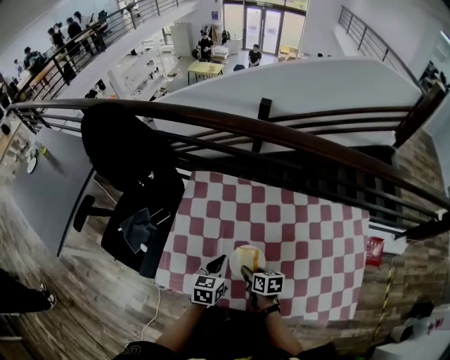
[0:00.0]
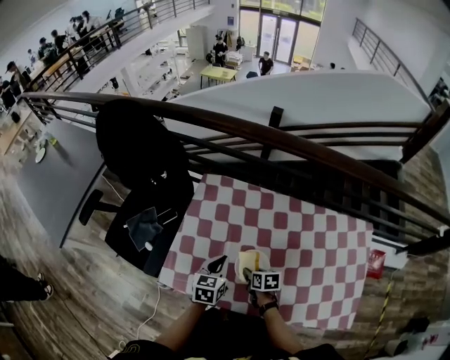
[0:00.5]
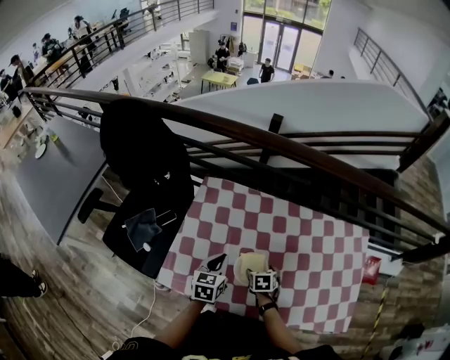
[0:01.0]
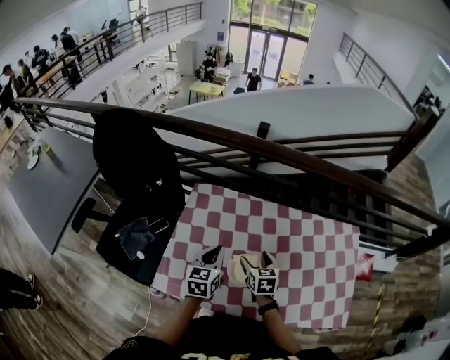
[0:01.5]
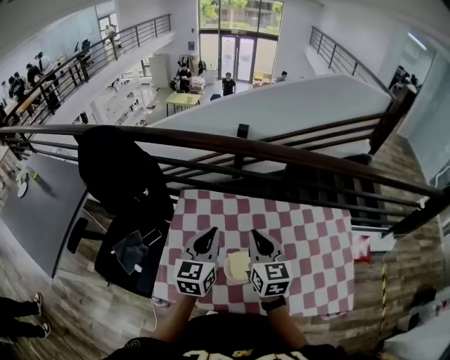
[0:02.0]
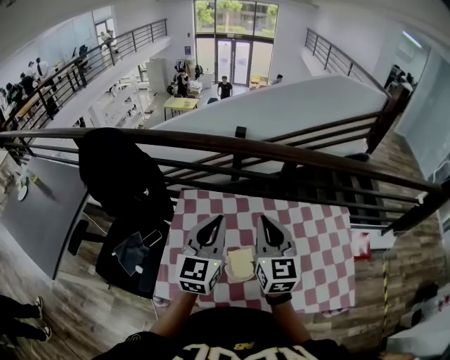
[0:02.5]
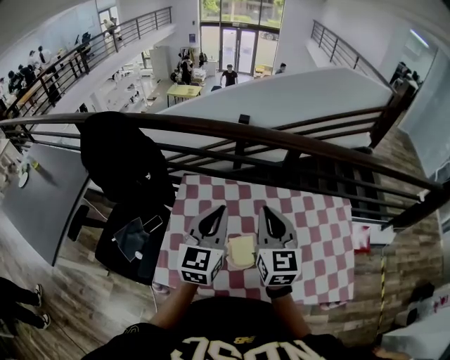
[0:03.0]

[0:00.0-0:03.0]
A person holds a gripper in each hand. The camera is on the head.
0:00.0 to 0:01.5: The left gripper moves upward, approximately 5 cm; the right gripper heads upward and forward, covering approximately 10 cm, swivels roughly 30 degrees, and opens its fingers.
0:01.5 to 0:03.0: The two grippers go some 25 cm upward. The left gripper turns by about 30 degrees; the right gripper tilts its fingers some 40 degrees upward, and closes its fingers.

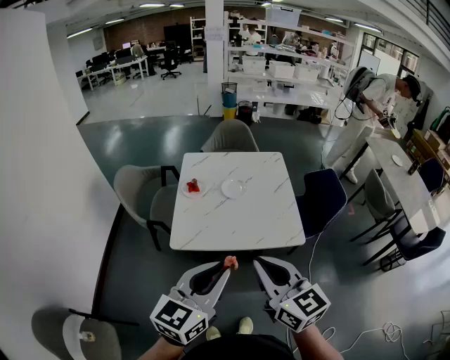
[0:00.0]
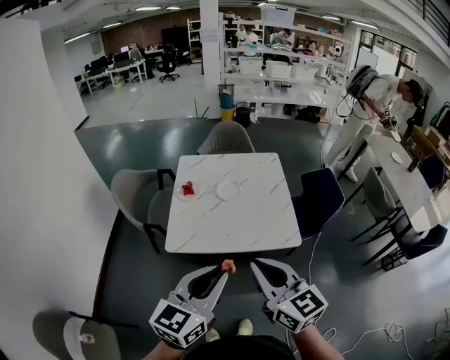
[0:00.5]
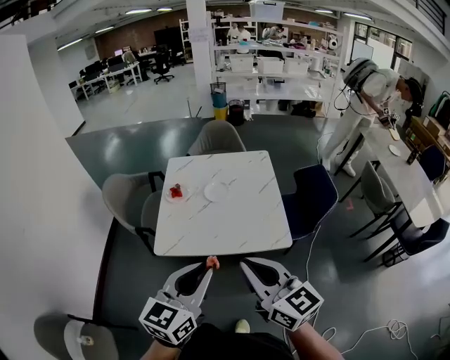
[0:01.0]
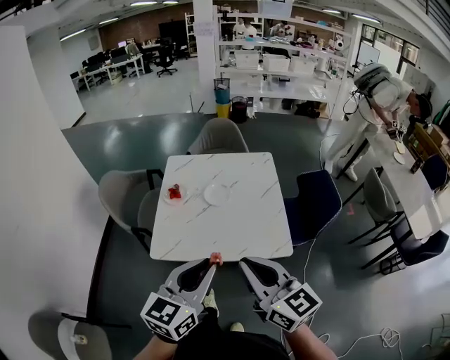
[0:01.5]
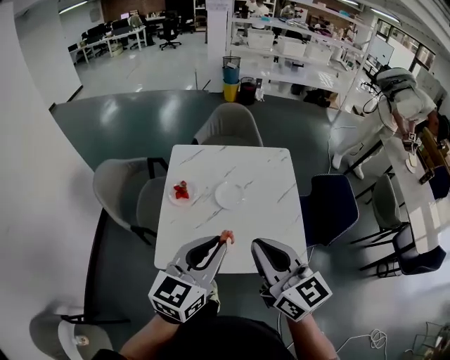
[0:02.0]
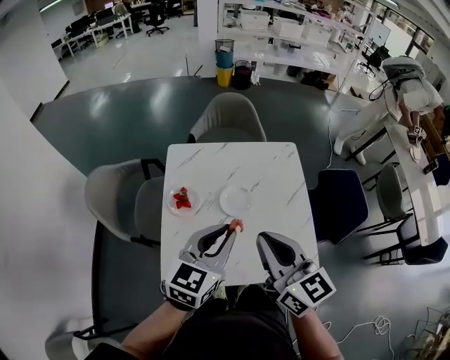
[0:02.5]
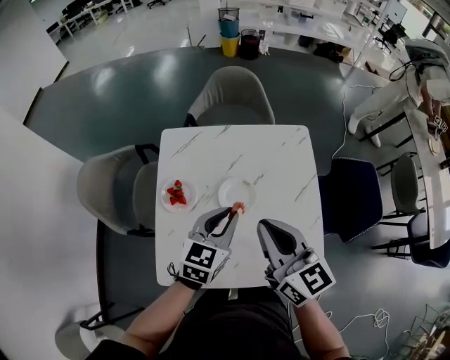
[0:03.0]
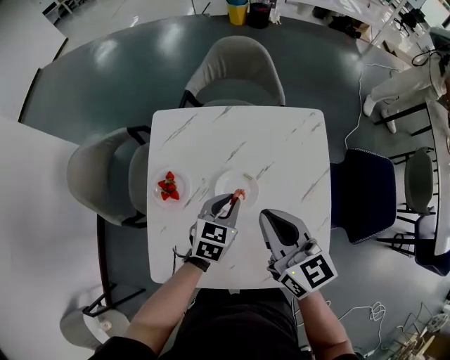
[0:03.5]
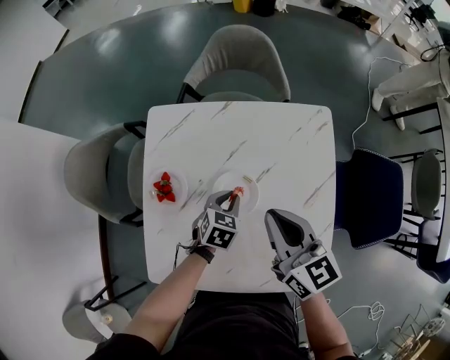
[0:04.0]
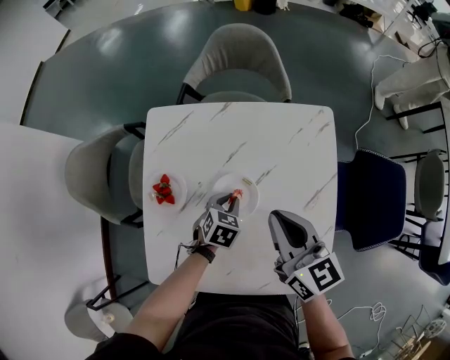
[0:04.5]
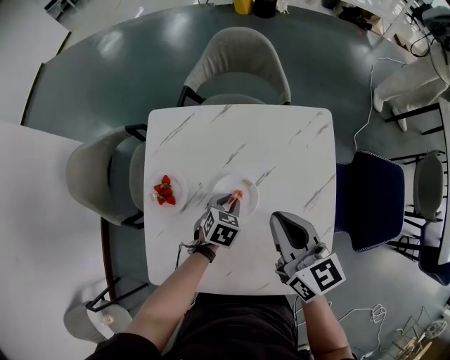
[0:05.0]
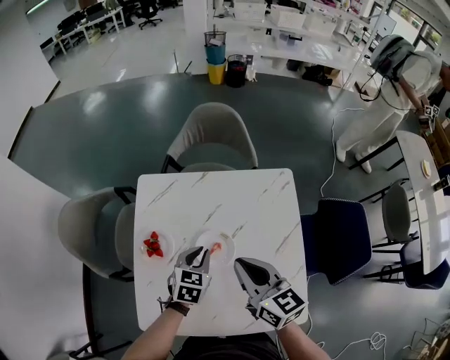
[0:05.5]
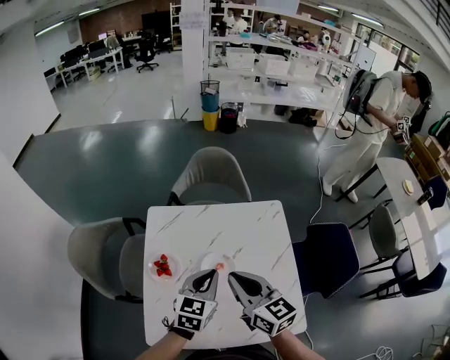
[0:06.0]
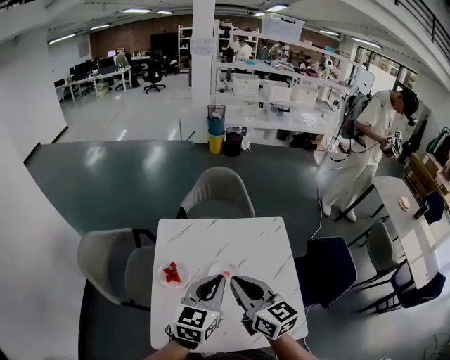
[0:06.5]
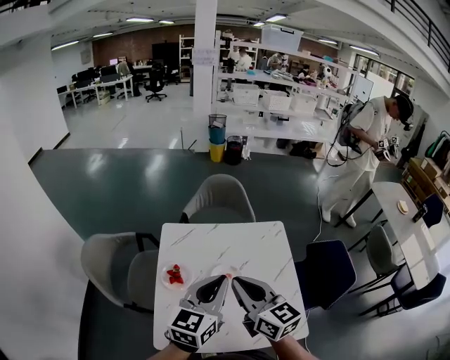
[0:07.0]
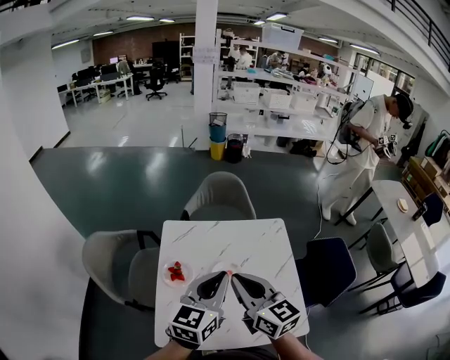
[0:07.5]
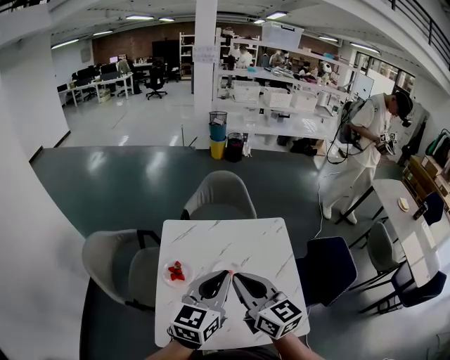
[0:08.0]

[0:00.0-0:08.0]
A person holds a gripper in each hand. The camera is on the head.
0:00.0 to 0:02.0: Both grippers move forward, approximately 25 cm.
0:02.0 to 0:04.0: The left gripper travels downward and forward by approximately 50 cm, and points its fingers roughly 50 degrees further downward. The right gripper moves forward and downward, some 35 cm.
0:04.0 to 0:06.0: The right gripper travels upward, to the left and backward by about 15 cm. The left gripper moves upward, approximately 25 cm, and rotates some 30 degrees.
0:06.0 to 0:08.0: The right gripper heads upward and backward, covering about 10 cm. Meanwhile the left gripper is displaced upward and backward by about 15 cm, and swivels about 20 degrees.

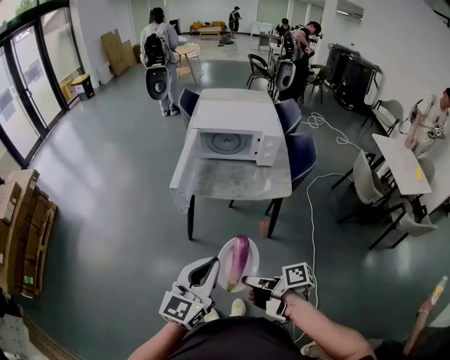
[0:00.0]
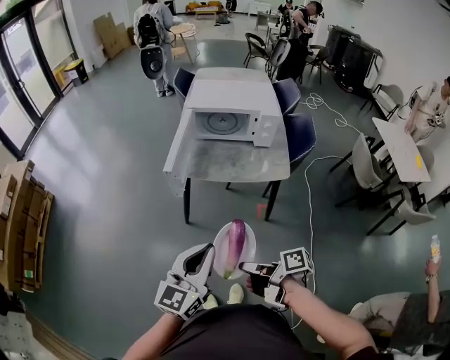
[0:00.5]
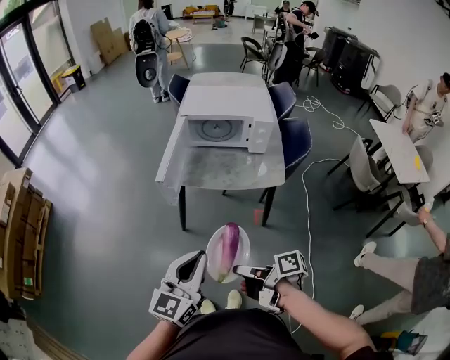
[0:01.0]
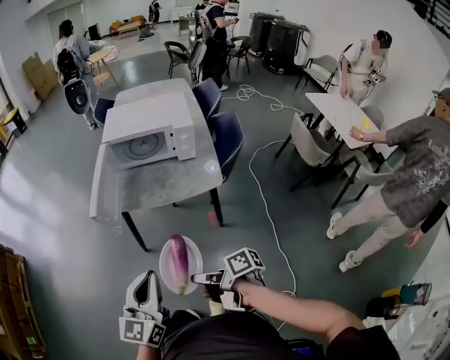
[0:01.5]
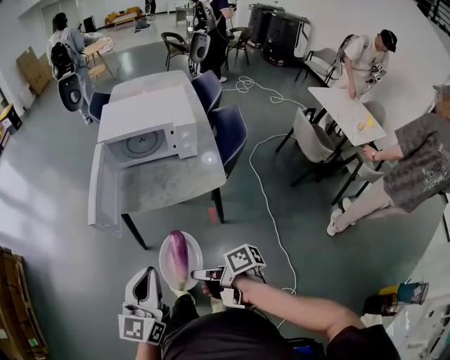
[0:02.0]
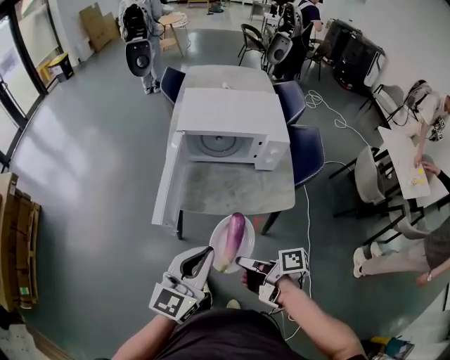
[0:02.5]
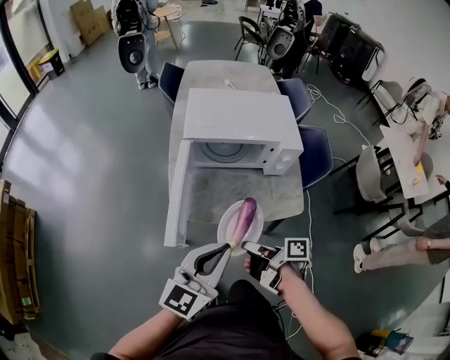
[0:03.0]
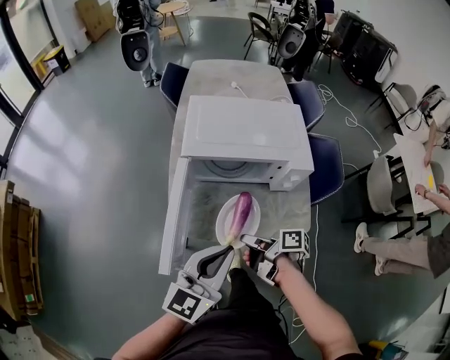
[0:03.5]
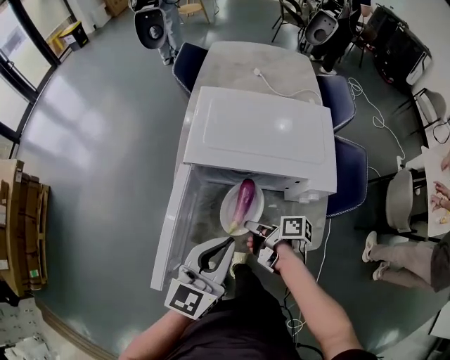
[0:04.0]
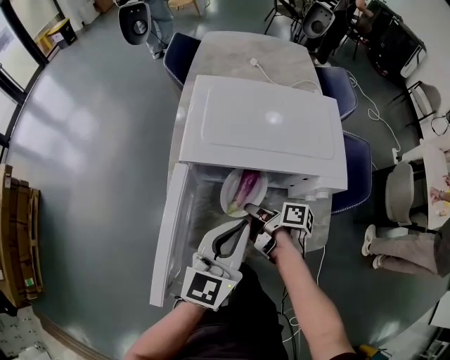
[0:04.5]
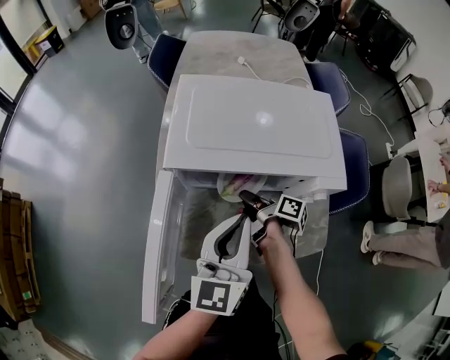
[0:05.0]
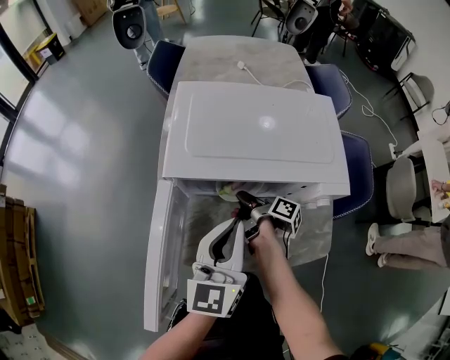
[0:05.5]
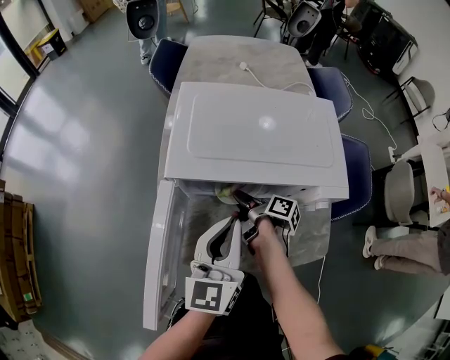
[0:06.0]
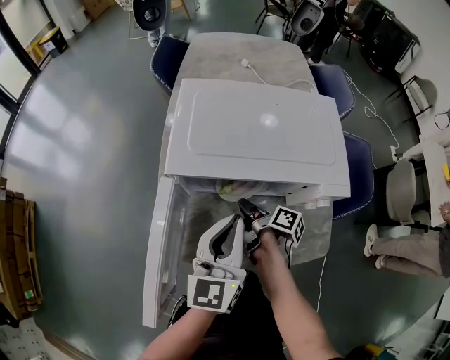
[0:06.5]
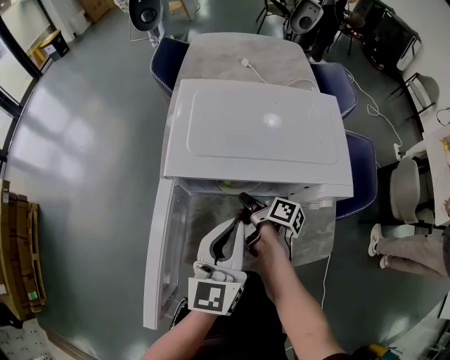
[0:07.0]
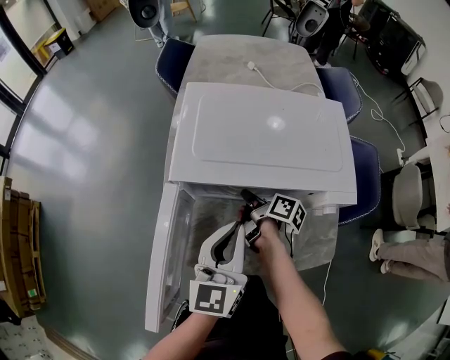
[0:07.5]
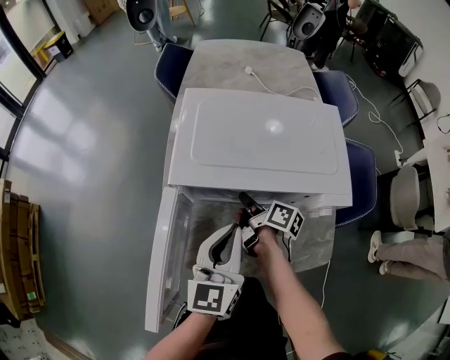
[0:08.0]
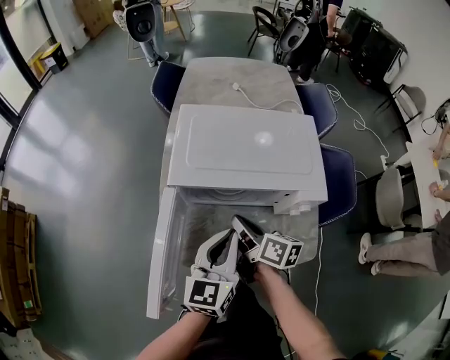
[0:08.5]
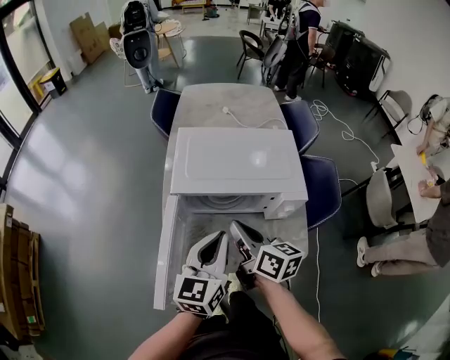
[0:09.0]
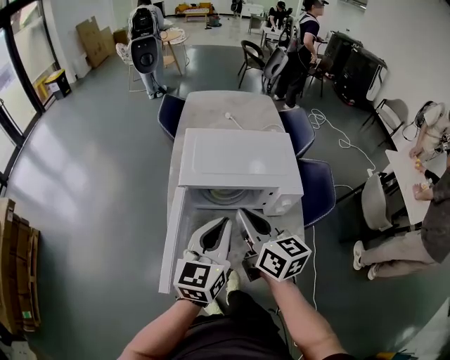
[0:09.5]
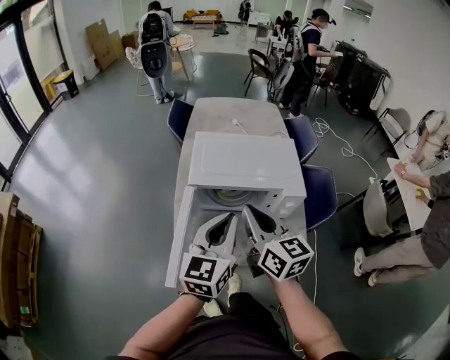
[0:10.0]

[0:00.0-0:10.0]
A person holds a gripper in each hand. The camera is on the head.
0:00.0 to 0:02.0: The left gripper ends up roughly 15 cm from where it was.
0:02.0 to 0:04.0: The left gripper moves some 35 cm.
0:04.0 to 0:06.0: The left gripper ends up about 10 cm from where it was.
0:08.0 to 0:10.0: The left gripper is displaced upward by some 15 cm.

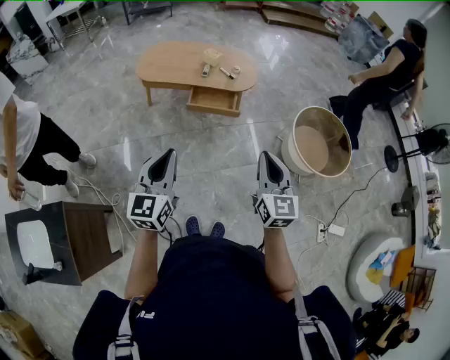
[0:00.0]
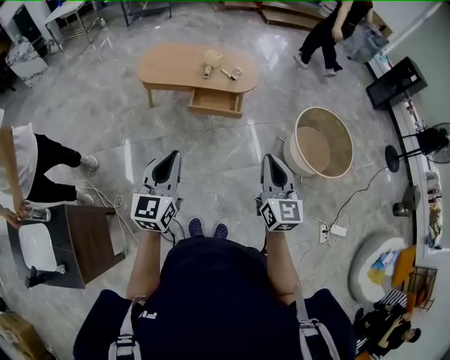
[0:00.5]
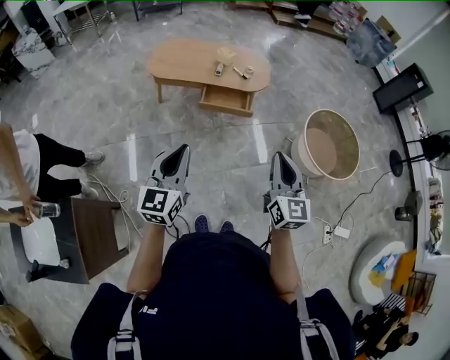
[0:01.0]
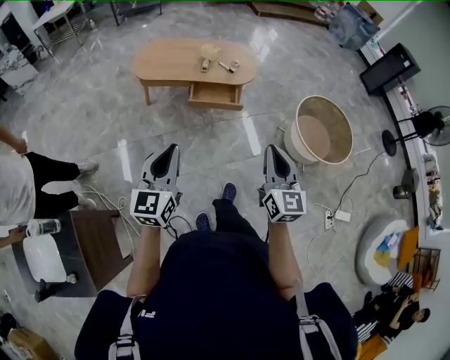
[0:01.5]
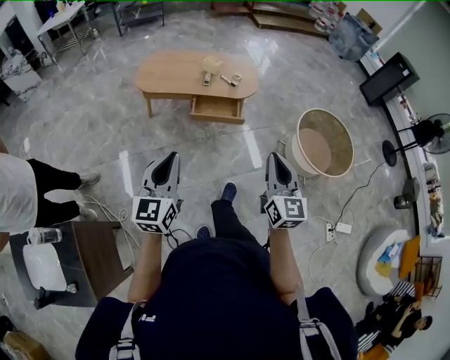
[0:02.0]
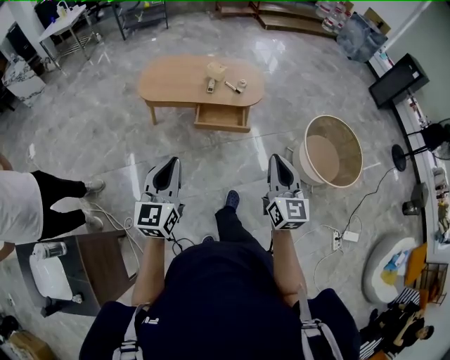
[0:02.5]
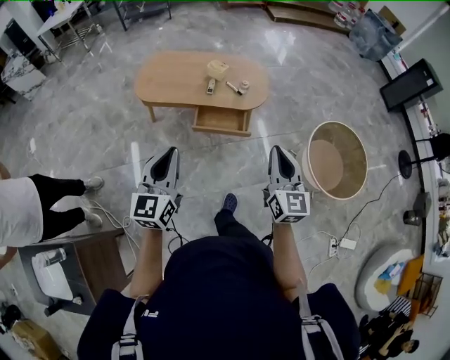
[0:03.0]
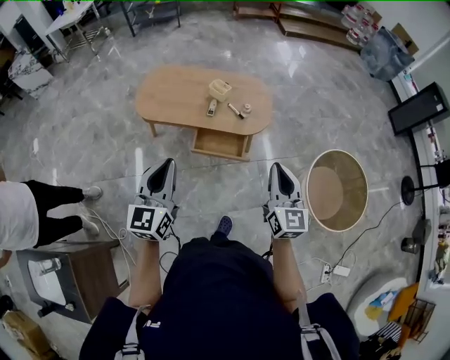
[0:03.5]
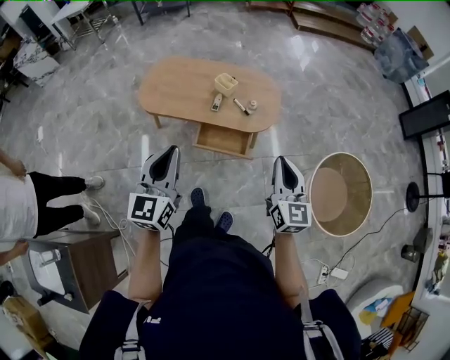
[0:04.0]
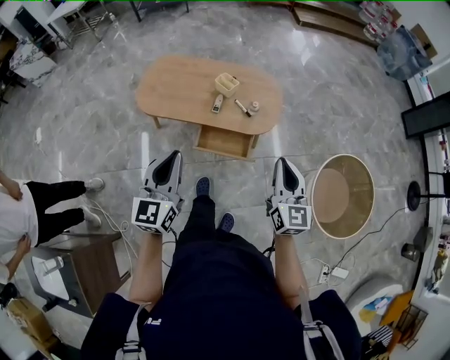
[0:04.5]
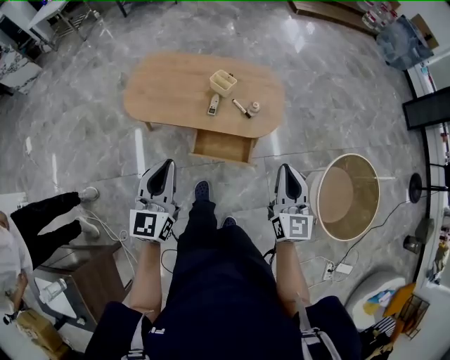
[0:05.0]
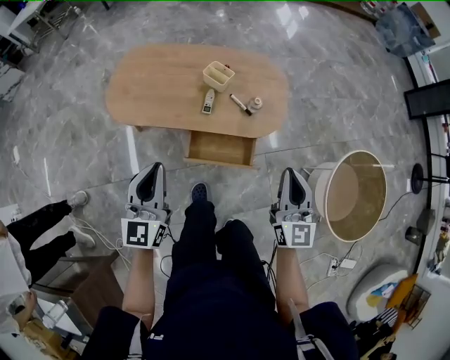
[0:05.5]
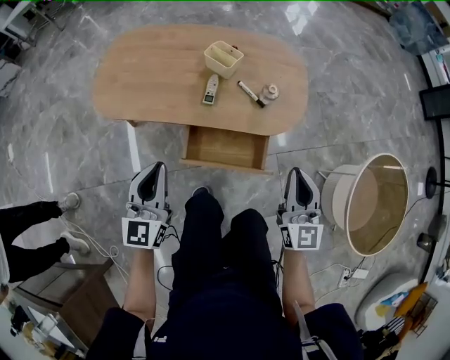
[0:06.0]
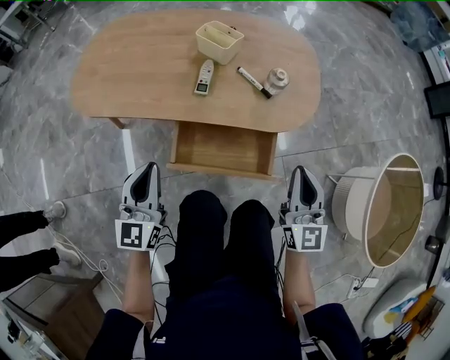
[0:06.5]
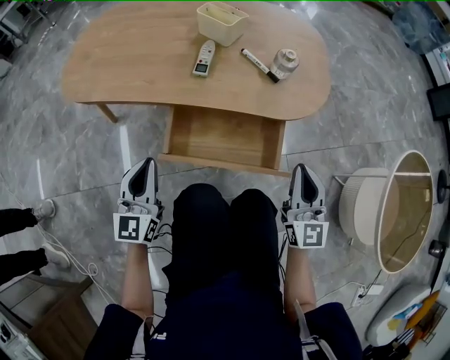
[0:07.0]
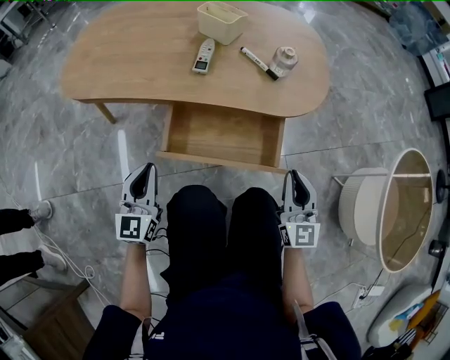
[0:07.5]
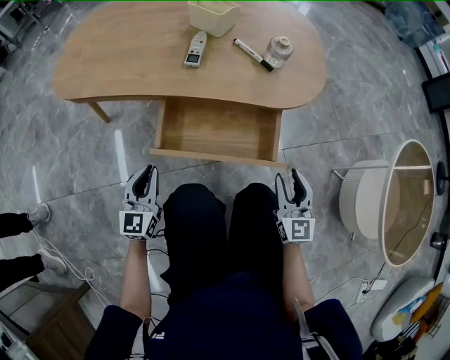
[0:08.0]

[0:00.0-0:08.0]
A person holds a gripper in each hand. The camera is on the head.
0:00.0 to 0:02.0: The grippers both shift to the left by approximately 5 cm.
0:02.0 to 0:04.0: The grippers both shift forward by approximately 40 cm.
0:04.0 to 0:06.0: The grippers both shift downward and forward by roughly 40 cm.
0:06.0 to 0:08.0: Both grippers travel together downward, roughly 35 cm. The right gripper opens up.
